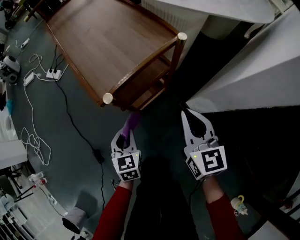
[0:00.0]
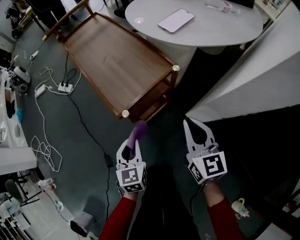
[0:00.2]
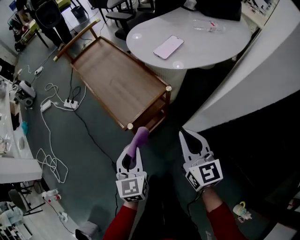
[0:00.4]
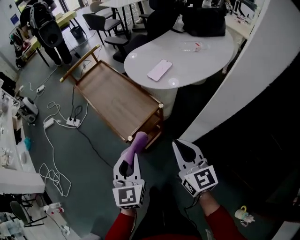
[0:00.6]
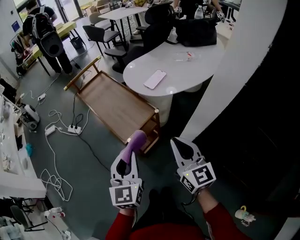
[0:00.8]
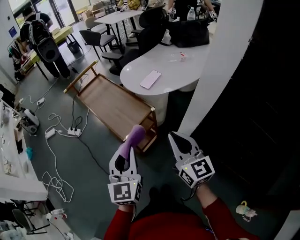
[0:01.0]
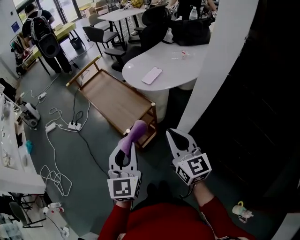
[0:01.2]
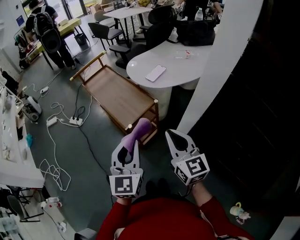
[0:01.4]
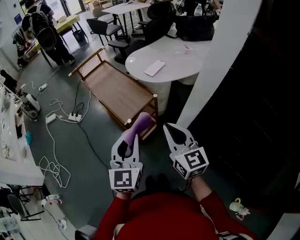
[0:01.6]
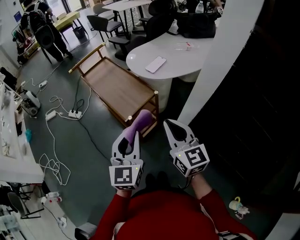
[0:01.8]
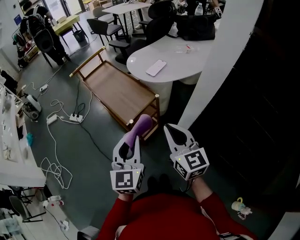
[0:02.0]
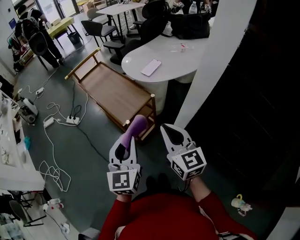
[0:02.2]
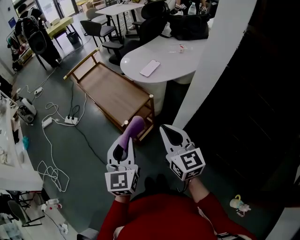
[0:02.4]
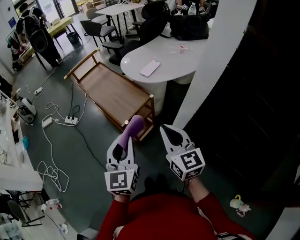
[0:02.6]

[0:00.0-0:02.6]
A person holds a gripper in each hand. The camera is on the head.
0.0 to 1.2 s: The left gripper heads upward, covering about 40 cm, and angles its fingers upward, by roughly 30 degrees. Meanwhile the right gripper is displaced upward by approximately 30 cm.
1.2 to 2.6 s: The grippers move only a little.

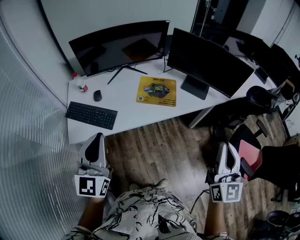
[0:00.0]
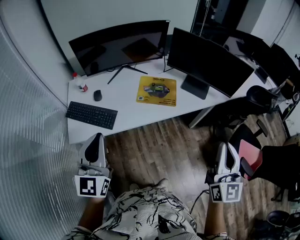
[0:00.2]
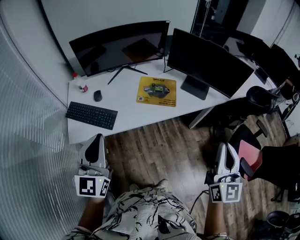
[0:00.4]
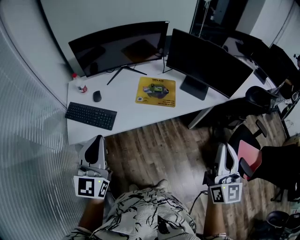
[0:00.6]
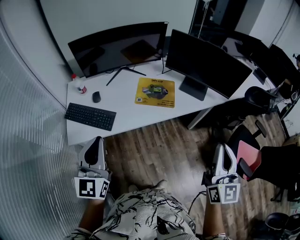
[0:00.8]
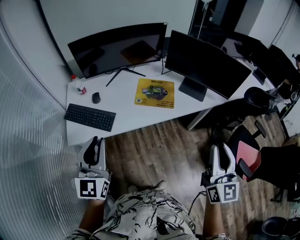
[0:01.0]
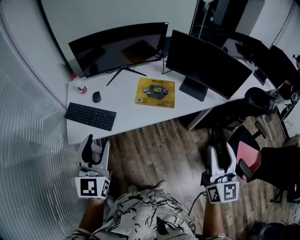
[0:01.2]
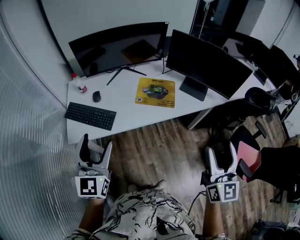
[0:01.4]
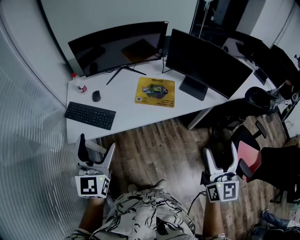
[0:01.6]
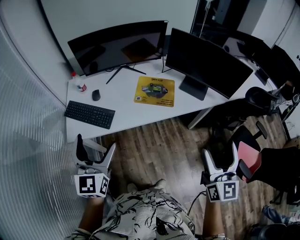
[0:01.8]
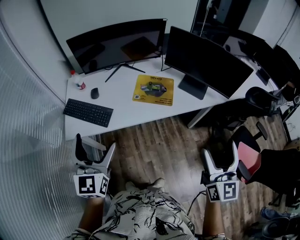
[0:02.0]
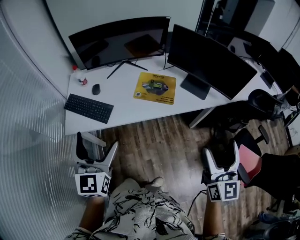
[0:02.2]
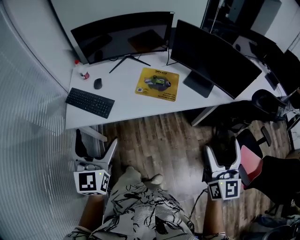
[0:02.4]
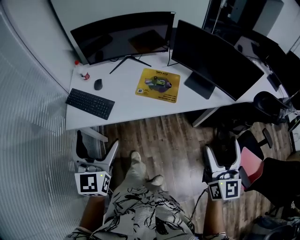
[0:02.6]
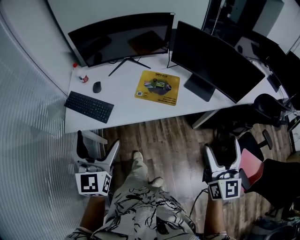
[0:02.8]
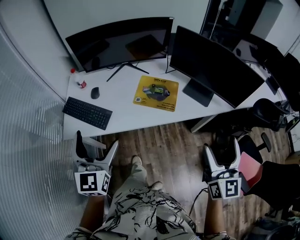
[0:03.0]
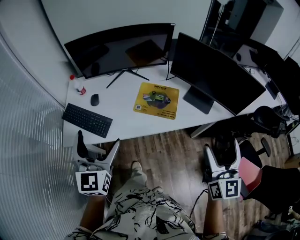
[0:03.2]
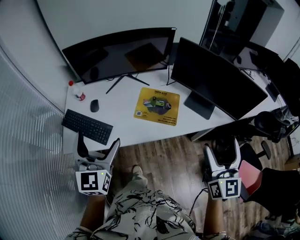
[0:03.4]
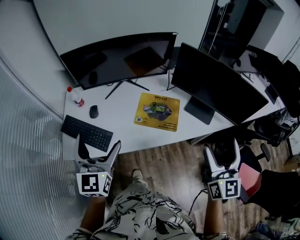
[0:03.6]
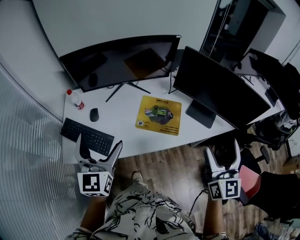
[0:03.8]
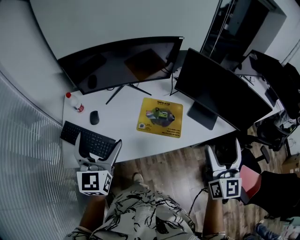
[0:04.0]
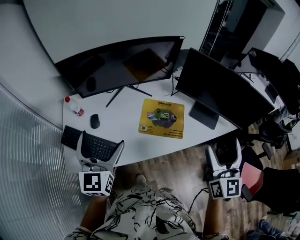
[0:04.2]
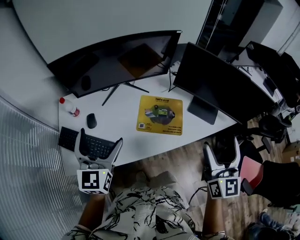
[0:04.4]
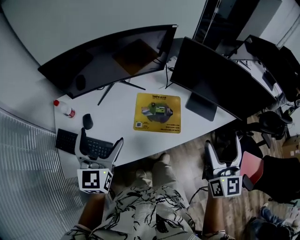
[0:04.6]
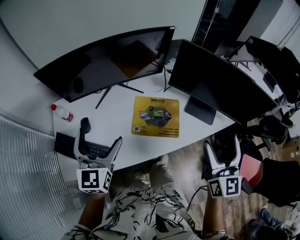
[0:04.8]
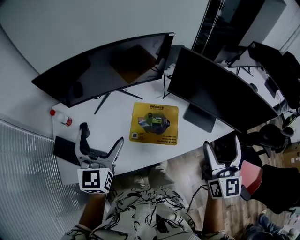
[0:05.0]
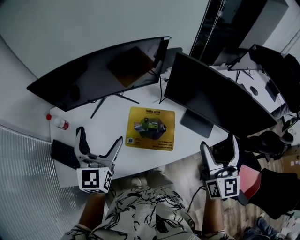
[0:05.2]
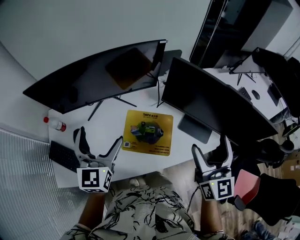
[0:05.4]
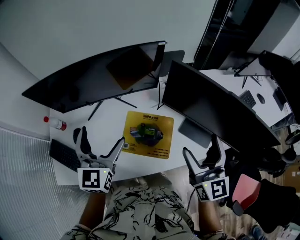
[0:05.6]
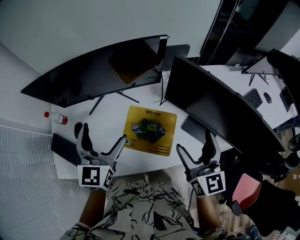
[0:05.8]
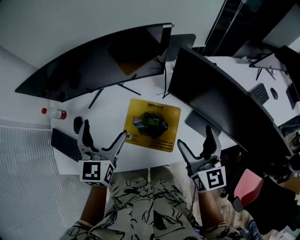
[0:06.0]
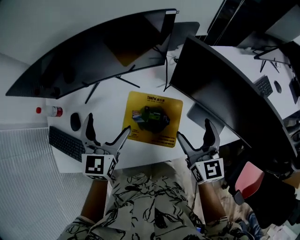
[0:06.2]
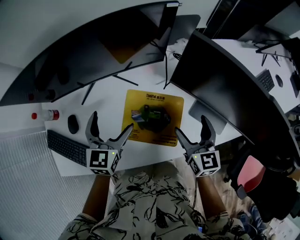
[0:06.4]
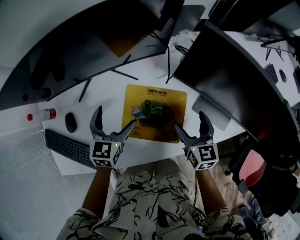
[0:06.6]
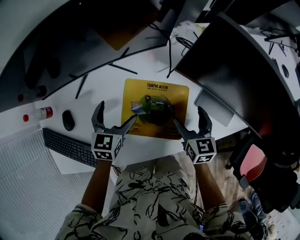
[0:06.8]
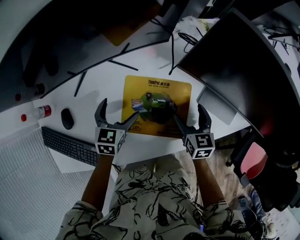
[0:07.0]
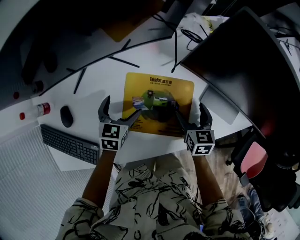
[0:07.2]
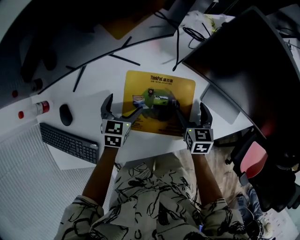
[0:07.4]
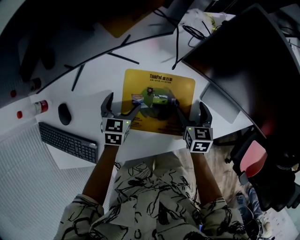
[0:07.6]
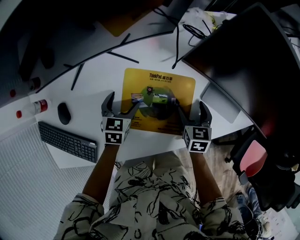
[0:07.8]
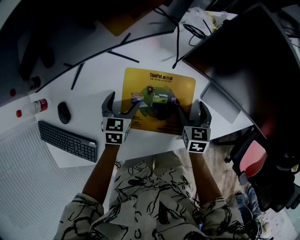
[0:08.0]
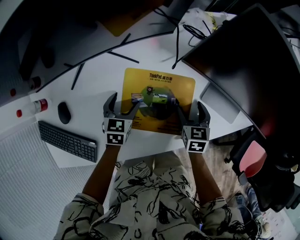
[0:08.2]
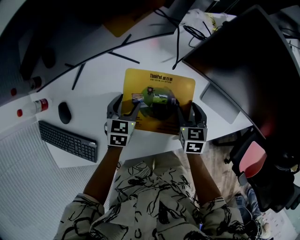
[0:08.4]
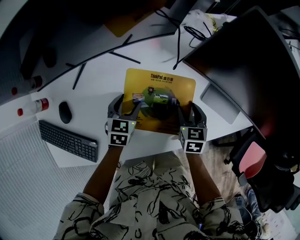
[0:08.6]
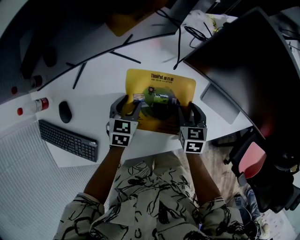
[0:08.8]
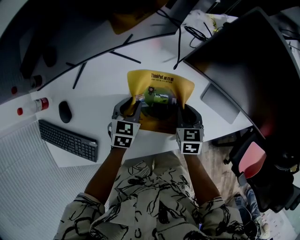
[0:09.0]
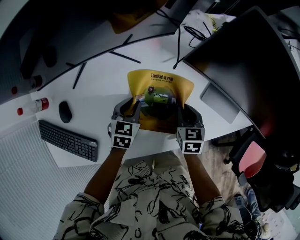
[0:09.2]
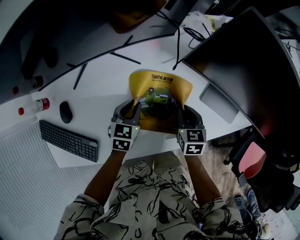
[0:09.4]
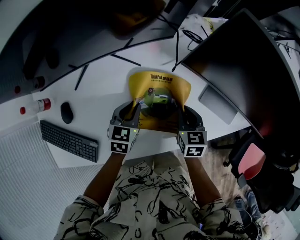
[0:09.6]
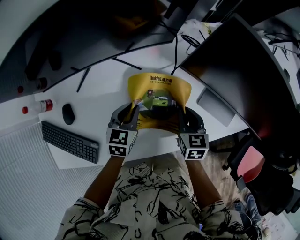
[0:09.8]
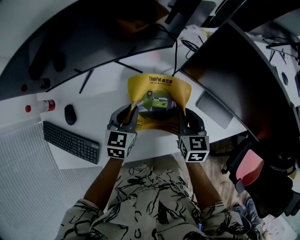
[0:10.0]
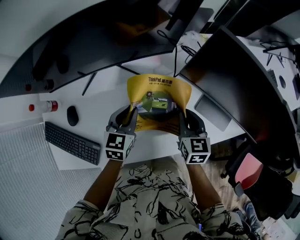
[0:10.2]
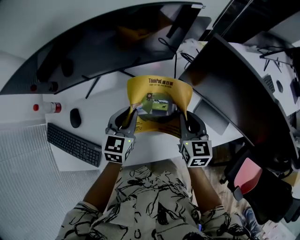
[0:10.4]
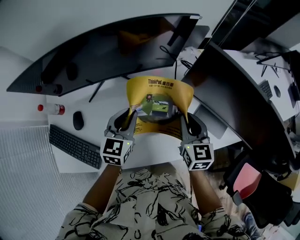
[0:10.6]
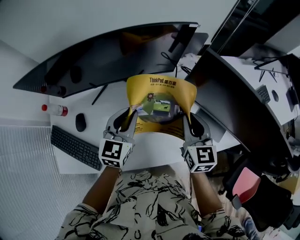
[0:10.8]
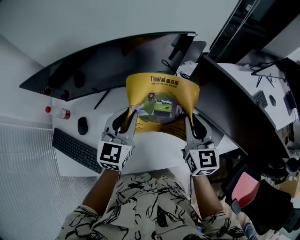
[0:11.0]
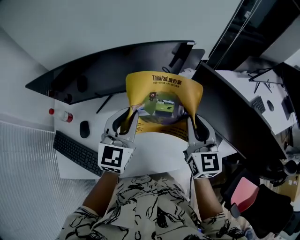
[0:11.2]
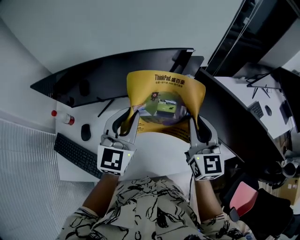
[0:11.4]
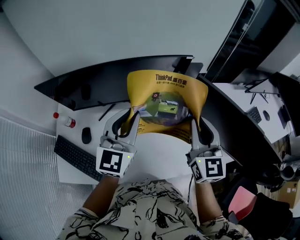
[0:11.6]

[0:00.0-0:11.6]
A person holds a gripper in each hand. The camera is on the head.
0.0 to 1.4 s: The left gripper opens. The right gripper opens.
1.4 to 2.8 s: The left gripper shifts some 5 cm to the right, and opens its fingers, while the right gripper shifts roughly 10 cm forward and to the right.
2.8 to 4.4 s: The right gripper goes some 20 cm forward and to the left. The left gripper moves forward, about 25 cm.
4.4 to 5.8 s: The left gripper travels forward and to the right by roughly 20 cm. Meanwhile the right gripper goes some 20 cm forward and downward, and swivels some 20 degrees.
5.8 to 7.2 s: The two grippers go some 30 cm downward. The left gripper angles its fingers downward, by about 30 degrees; the right gripper tips its fingers downward by some 40 degrees.
7.2 to 8.8 s: The left gripper closes up, while the right gripper closes up.
8.8 to 10.2 s: The two grippers go about 10 cm upward. The right gripper closes.
10.2 to 11.6 s: The grippers both shift upward by approximately 30 cm. The right gripper points its fingers approximately 30 degrees further upward, while the left gripper tips its fingers upward by roughly 30 degrees.

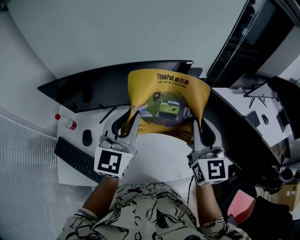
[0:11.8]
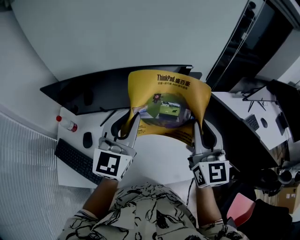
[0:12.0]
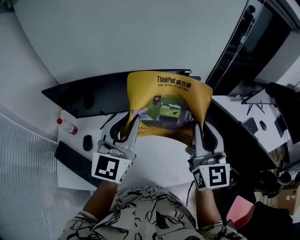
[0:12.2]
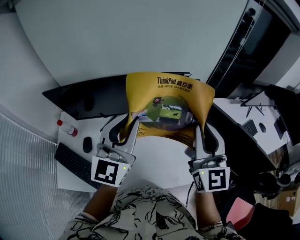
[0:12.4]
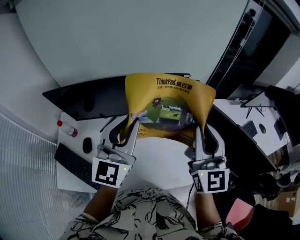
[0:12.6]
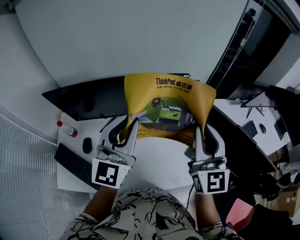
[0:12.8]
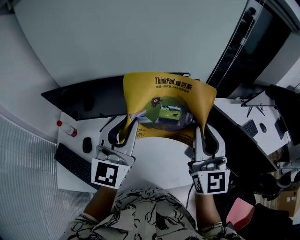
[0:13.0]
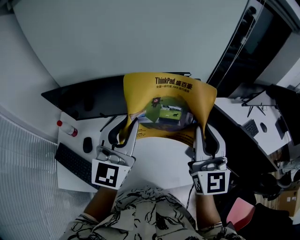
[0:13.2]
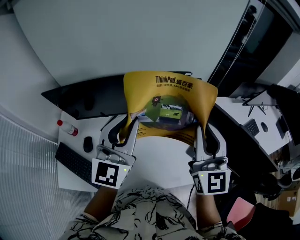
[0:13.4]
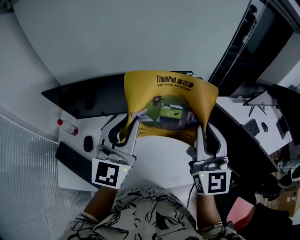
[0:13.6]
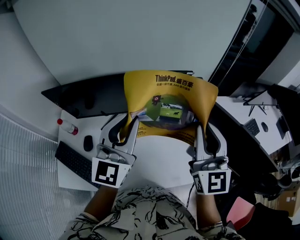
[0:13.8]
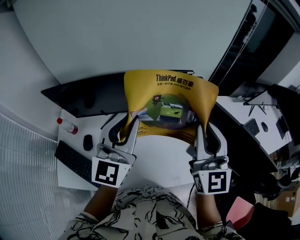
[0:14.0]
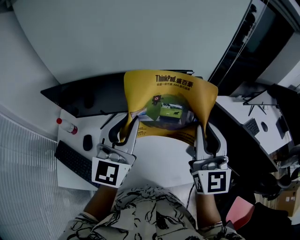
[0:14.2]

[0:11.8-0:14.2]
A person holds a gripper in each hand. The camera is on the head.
11.8 to 13.0 s: The right gripper changes place by about 5 cm.
13.0 to 14.2 s: Both grippers stay put.

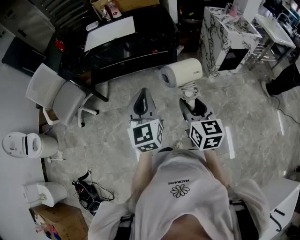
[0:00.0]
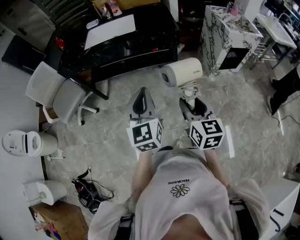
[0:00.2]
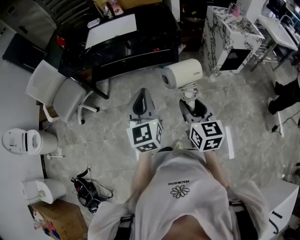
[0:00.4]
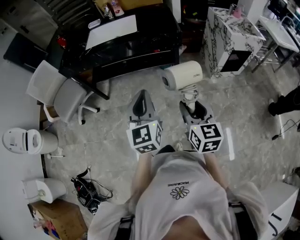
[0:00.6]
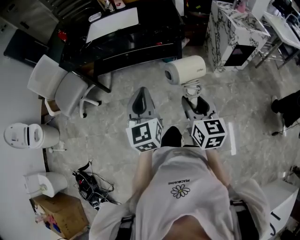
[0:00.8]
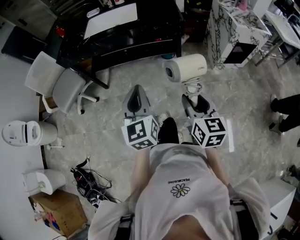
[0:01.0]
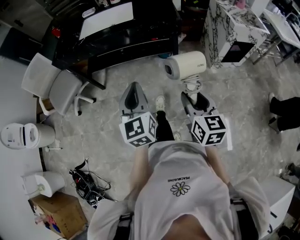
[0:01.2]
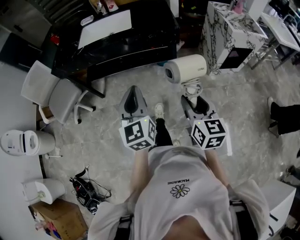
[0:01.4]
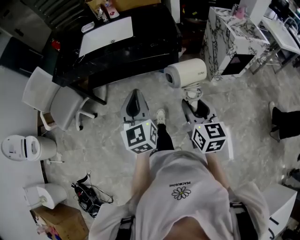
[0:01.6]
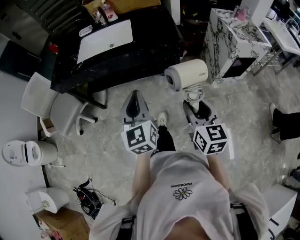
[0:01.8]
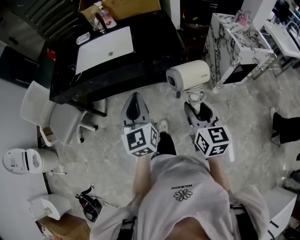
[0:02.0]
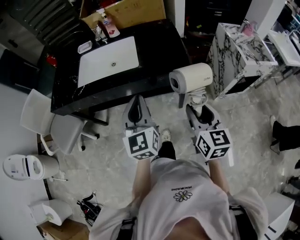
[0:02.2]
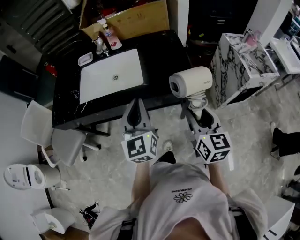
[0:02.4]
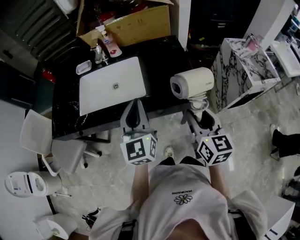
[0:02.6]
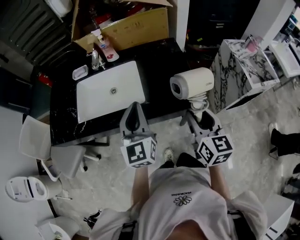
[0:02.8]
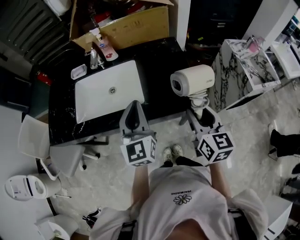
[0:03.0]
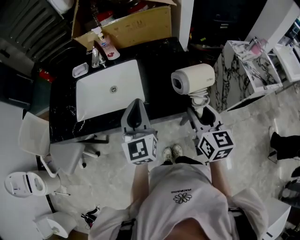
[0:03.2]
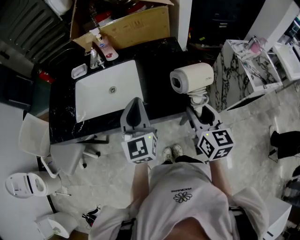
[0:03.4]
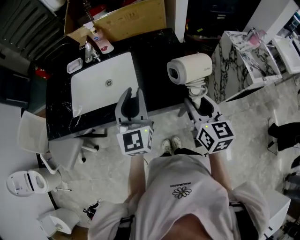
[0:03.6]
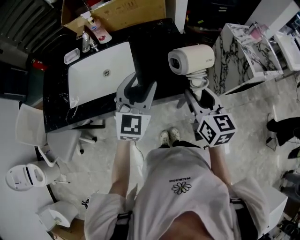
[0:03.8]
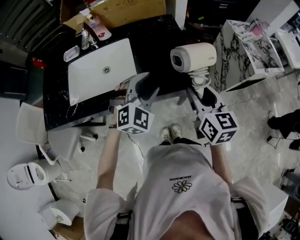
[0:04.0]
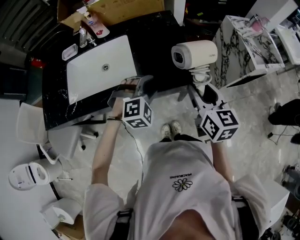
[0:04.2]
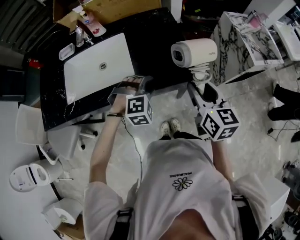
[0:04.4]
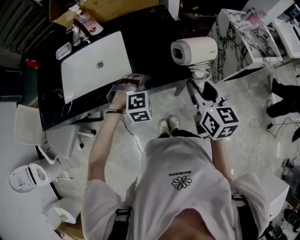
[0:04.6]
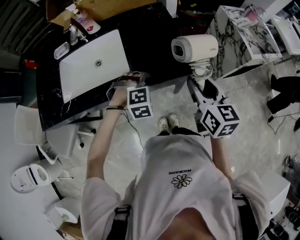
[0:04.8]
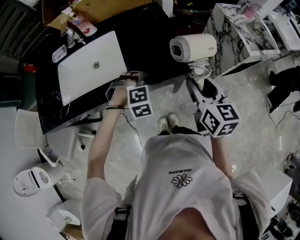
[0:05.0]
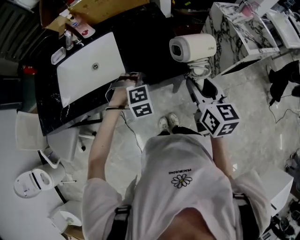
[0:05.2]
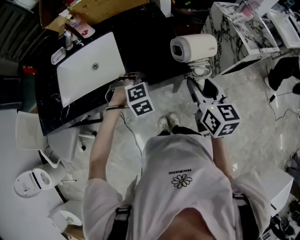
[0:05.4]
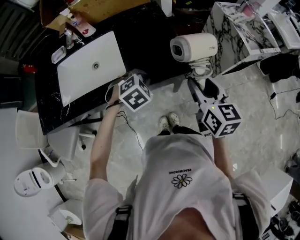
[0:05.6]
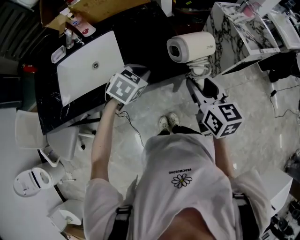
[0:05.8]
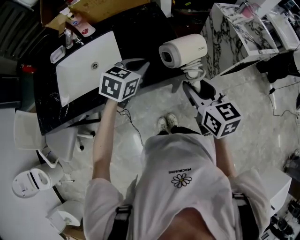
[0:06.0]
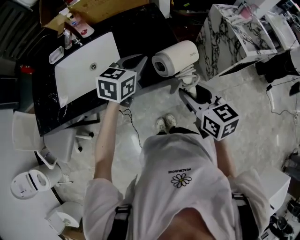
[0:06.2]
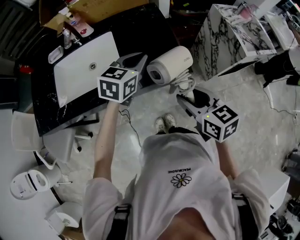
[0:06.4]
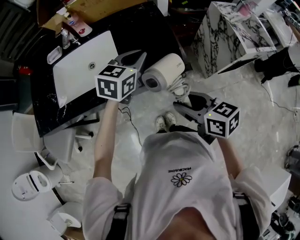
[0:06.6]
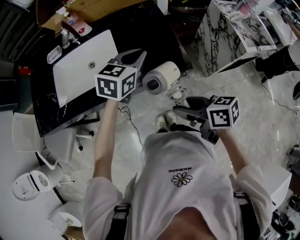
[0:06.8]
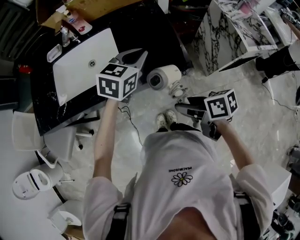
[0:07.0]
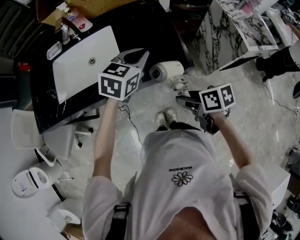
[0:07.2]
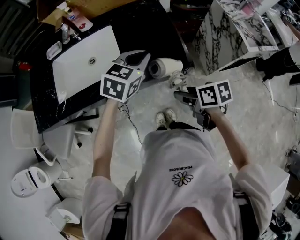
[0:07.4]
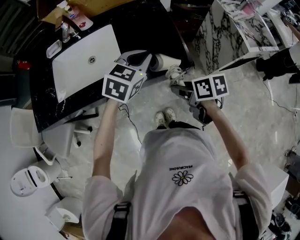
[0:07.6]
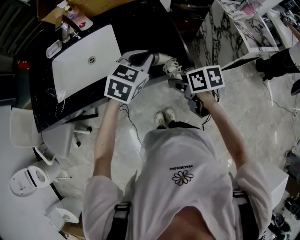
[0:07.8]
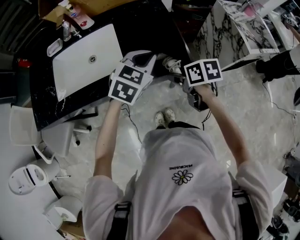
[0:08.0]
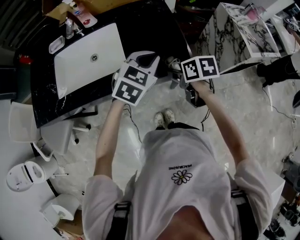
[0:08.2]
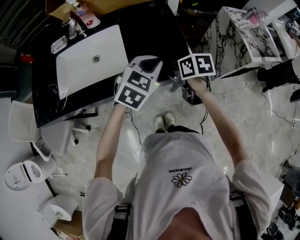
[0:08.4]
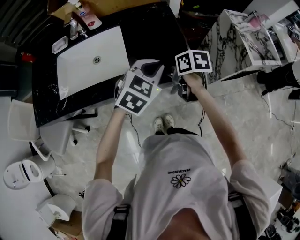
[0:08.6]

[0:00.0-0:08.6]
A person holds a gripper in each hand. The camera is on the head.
0.0 to 1.4 s: The grippers both shift forward by some 5 cm.
1.4 to 2.8 s: Both grippers are carried forward, about 40 cm.
2.8 to 4.4 s: The left gripper goes some 20 cm downward and to the right, points its fingers about 50 degrees further downward, and opens. The right gripper shifts by about 5 cm.
4.4 to 5.8 s: The left gripper ends up approximately 5 cm from where it was, rolls counterclockwise, seen from behind, by approximately 40 degrees, and closes its fingers.
5.8 to 7.2 s: The left gripper travels upward by approximately 5 cm, and rotates about 30 degrees. The right gripper goes approximately 10 cm downward, and changes its angle by about 50 degrees.
7.2 to 8.6 s: The right gripper heads forward, covering about 15 cm.
